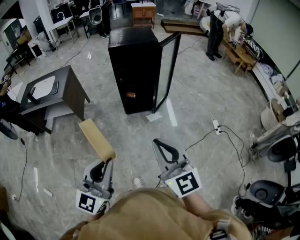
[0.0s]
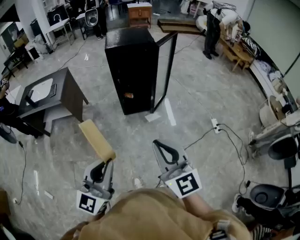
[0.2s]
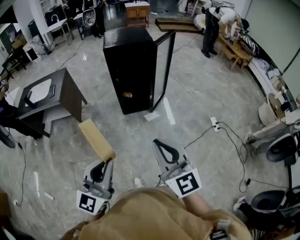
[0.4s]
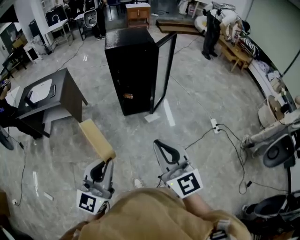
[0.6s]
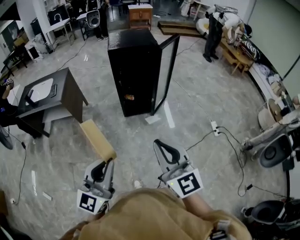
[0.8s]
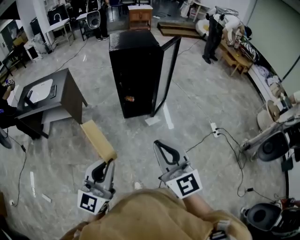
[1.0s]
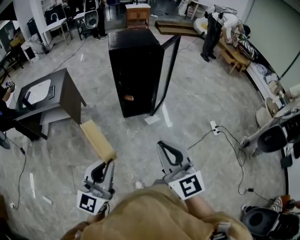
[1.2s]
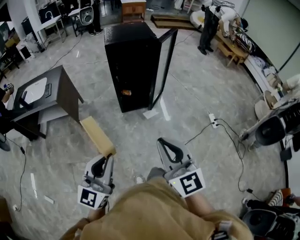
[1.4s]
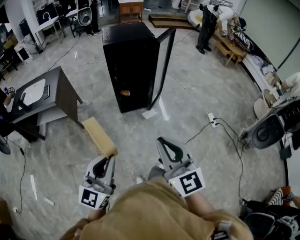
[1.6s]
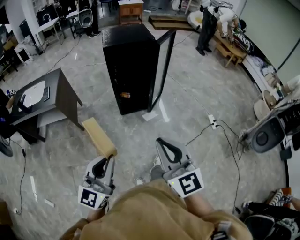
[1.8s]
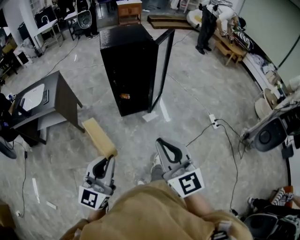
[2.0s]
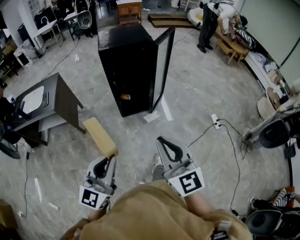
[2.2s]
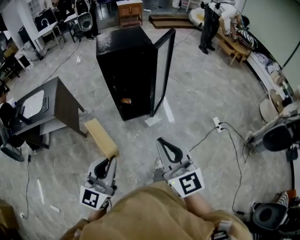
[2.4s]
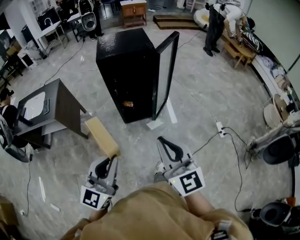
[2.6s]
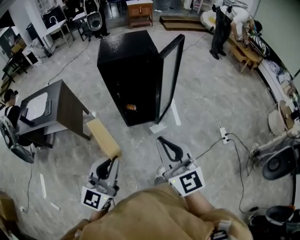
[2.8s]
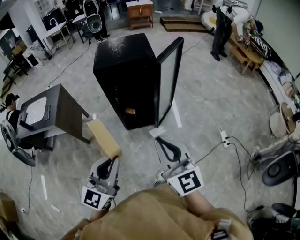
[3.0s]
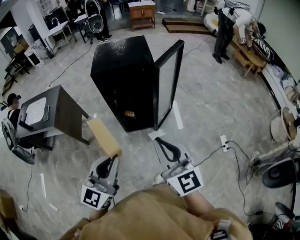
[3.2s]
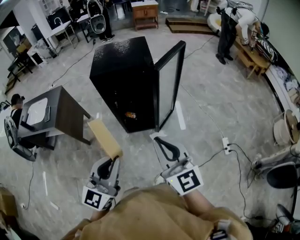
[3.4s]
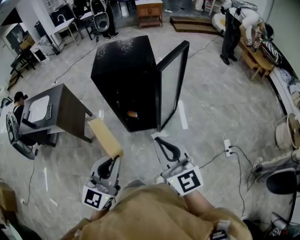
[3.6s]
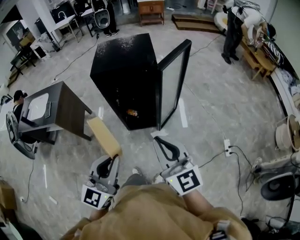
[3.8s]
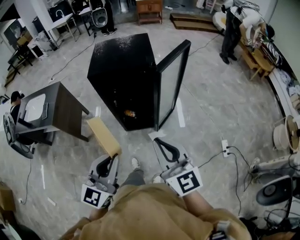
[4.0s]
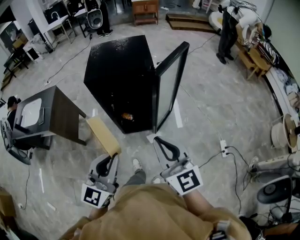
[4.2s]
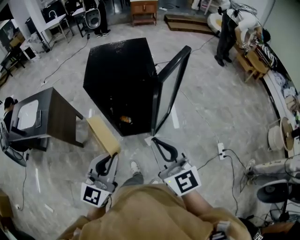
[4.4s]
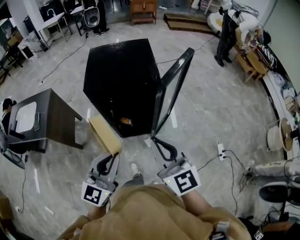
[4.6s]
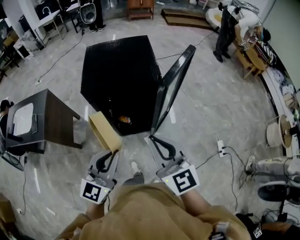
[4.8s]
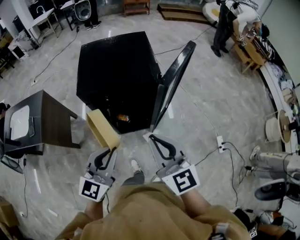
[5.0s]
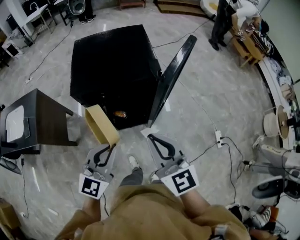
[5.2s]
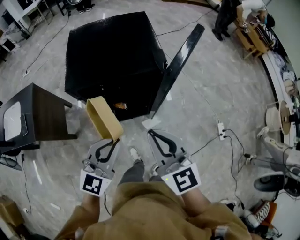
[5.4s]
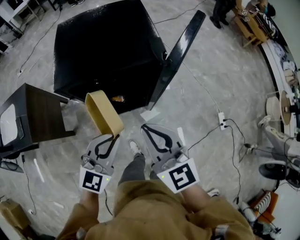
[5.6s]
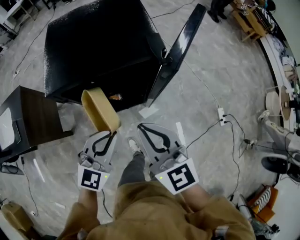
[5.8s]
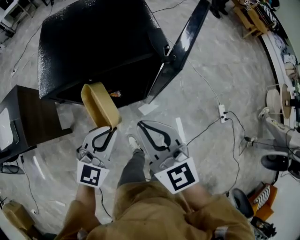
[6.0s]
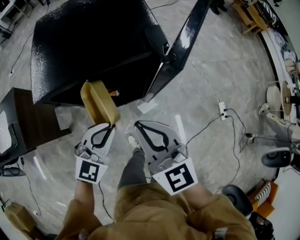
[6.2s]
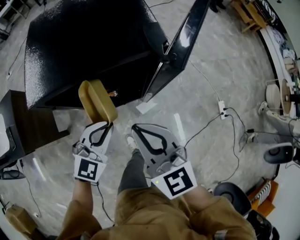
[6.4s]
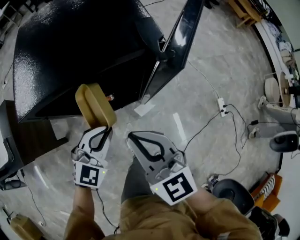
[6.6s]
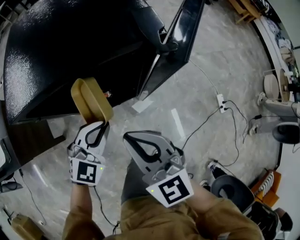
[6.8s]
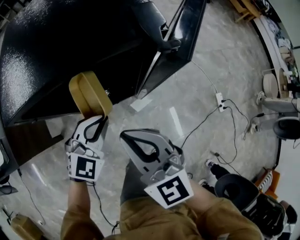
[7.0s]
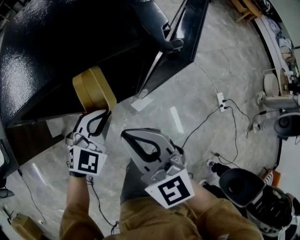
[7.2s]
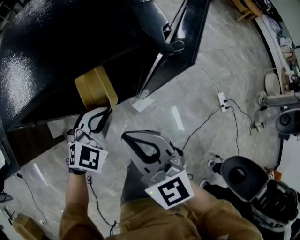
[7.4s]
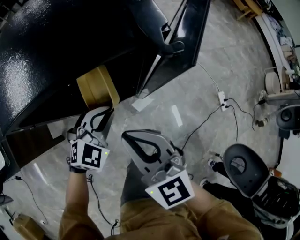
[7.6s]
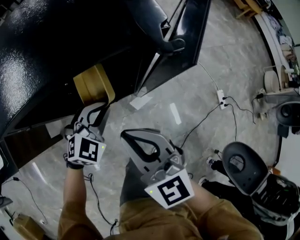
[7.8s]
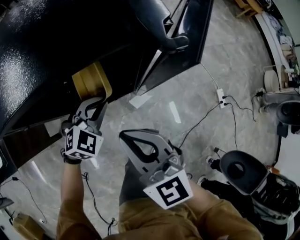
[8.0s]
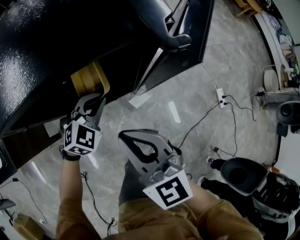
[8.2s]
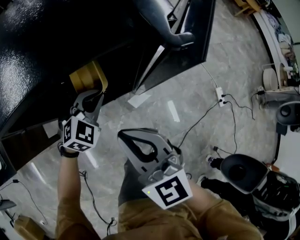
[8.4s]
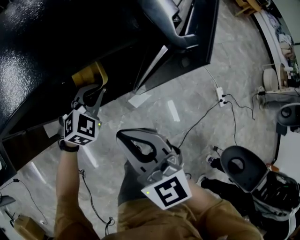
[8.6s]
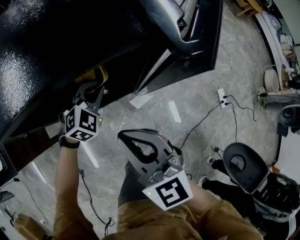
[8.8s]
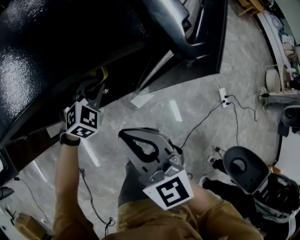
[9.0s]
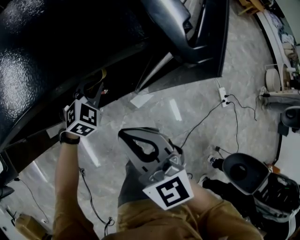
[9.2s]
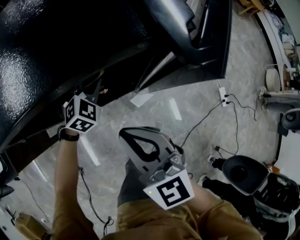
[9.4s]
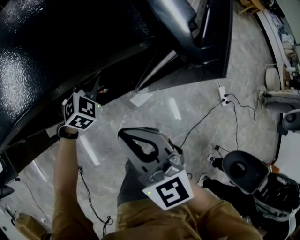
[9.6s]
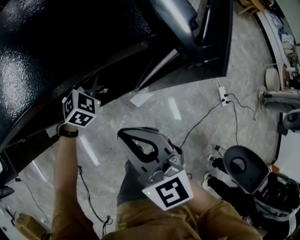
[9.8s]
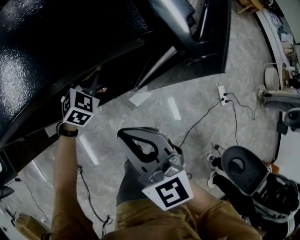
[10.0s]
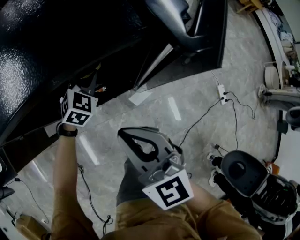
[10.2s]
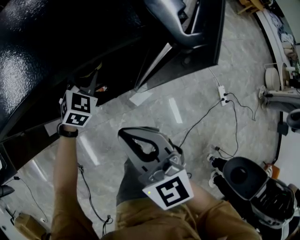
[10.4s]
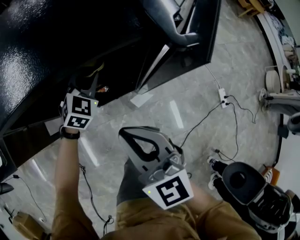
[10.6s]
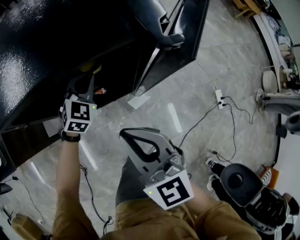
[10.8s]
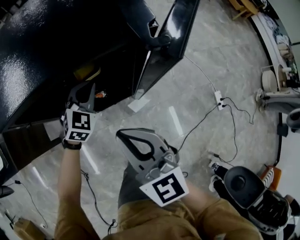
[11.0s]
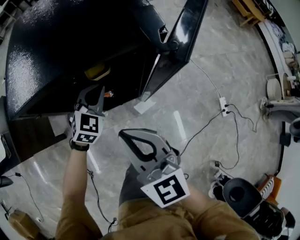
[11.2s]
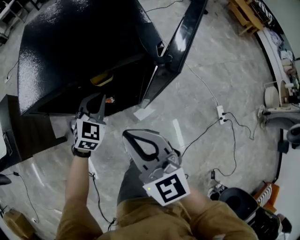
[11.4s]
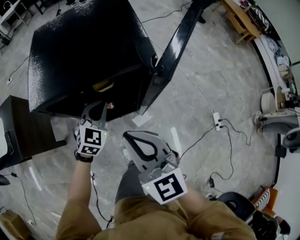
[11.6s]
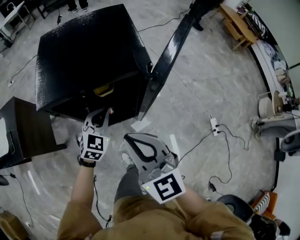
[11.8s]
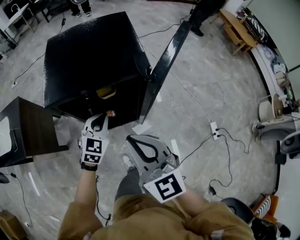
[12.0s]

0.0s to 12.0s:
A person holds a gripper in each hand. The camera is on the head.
0.0s to 1.6s: The left gripper goes about 10 cm forward and to the left, while the right gripper goes roughly 5 cm to the left.
1.6s to 3.0s: The left gripper heads forward and to the right, covering some 35 cm, while the right gripper goes about 30 cm forward.
3.0s to 4.4s: Both grippers move forward, approximately 20 cm.
4.4s to 6.0s: The left gripper goes roughly 35 cm forward and downward, and swivels some 30 degrees. Meanwhile the right gripper travels forward, downward and to the left by roughly 35 cm.
6.0s to 7.6s: The left gripper travels downward and forward by approximately 25 cm. Meanwhile the right gripper is displaced downward by roughly 15 cm.
7.6s to 9.0s: The left gripper moves forward, some 10 cm.
9.0s to 10.4s: The left gripper moves forward, roughly 5 cm.
10.4s to 12.0s: Both grippers travel together upward and backward, about 30 cm. The left gripper swivels approximately 20 degrees.

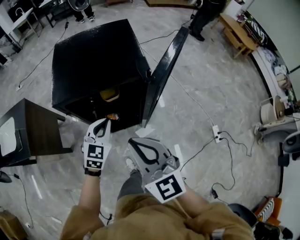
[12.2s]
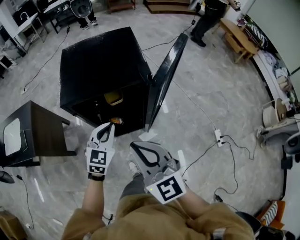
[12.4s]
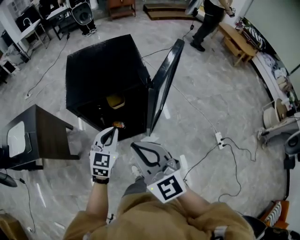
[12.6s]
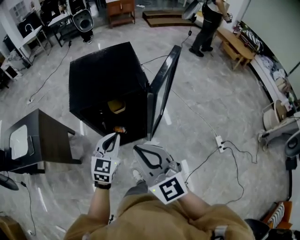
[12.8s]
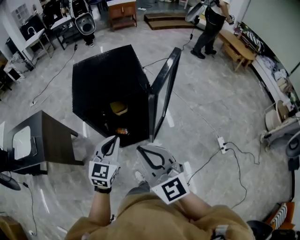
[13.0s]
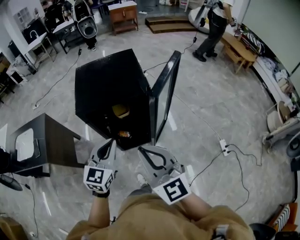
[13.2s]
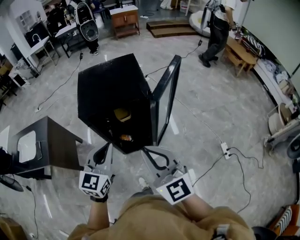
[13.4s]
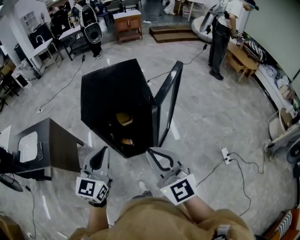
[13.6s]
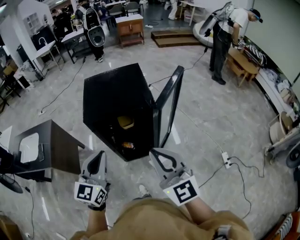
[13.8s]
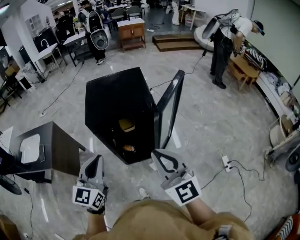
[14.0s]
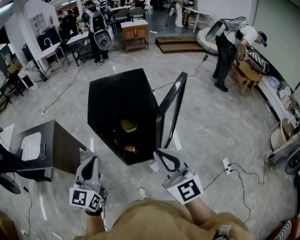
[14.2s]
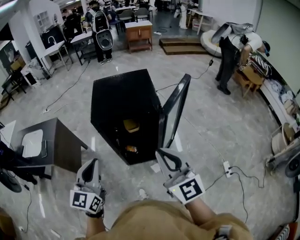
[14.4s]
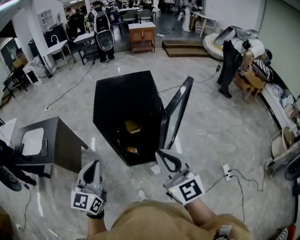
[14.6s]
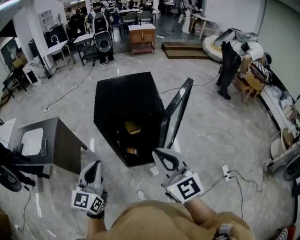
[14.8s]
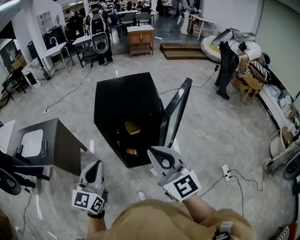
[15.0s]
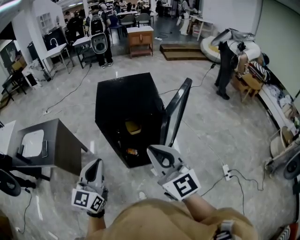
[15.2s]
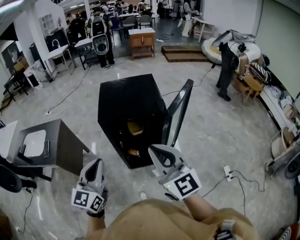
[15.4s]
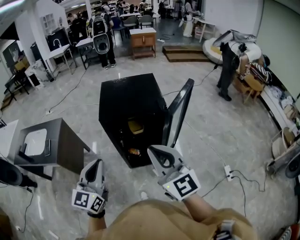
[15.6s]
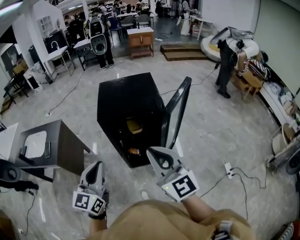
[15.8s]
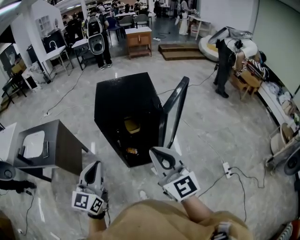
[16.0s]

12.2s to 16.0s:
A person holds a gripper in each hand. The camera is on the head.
12.2s to 13.4s: The right gripper shifts roughly 15 cm upward and backward, while the left gripper is displaced upward and backward by some 25 cm.
13.4s to 14.8s: The right gripper heads upward, covering some 5 cm. The left gripper heads to the left and backward, covering approximately 15 cm.
14.8s to 16.0s: There are only small adjustments of the grippers.

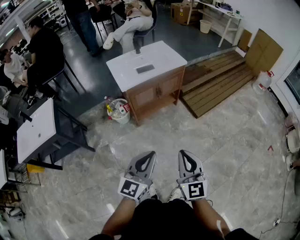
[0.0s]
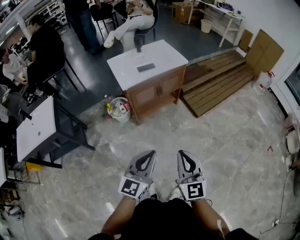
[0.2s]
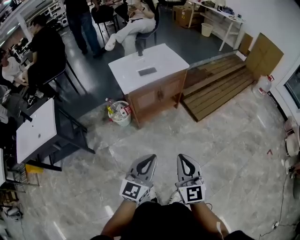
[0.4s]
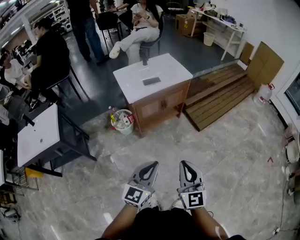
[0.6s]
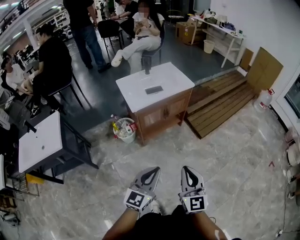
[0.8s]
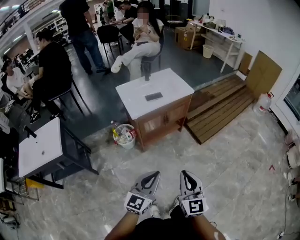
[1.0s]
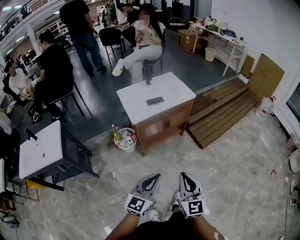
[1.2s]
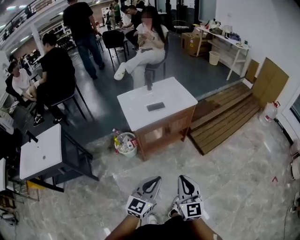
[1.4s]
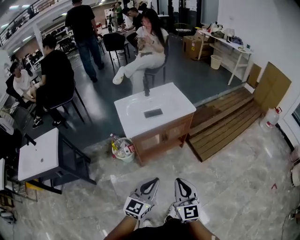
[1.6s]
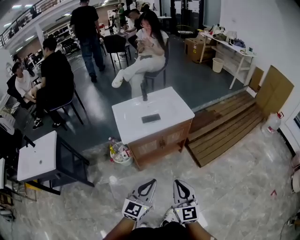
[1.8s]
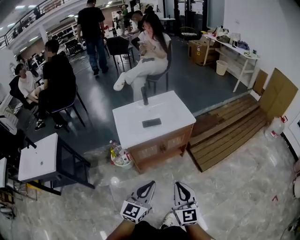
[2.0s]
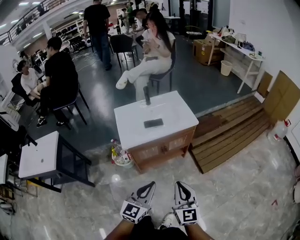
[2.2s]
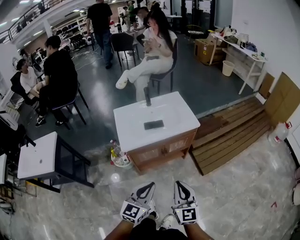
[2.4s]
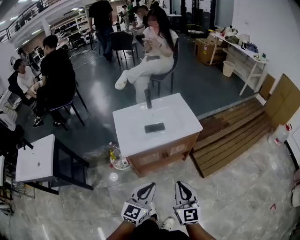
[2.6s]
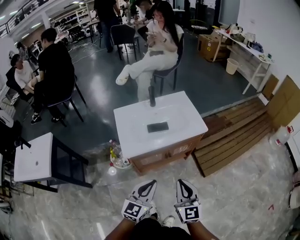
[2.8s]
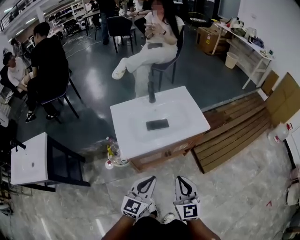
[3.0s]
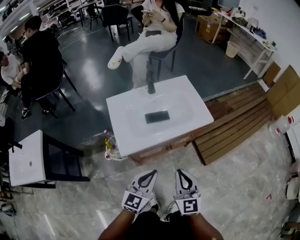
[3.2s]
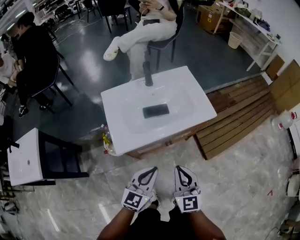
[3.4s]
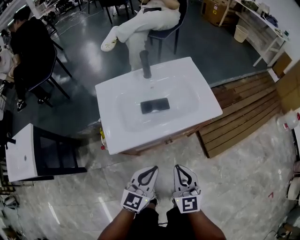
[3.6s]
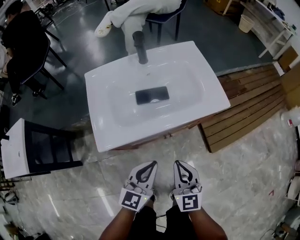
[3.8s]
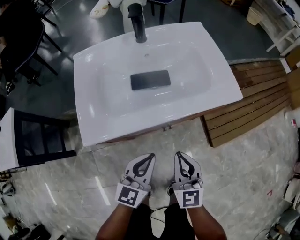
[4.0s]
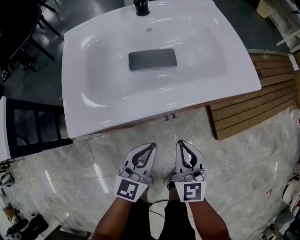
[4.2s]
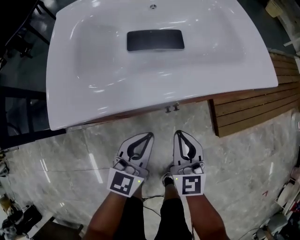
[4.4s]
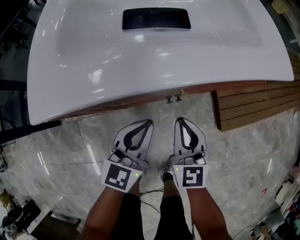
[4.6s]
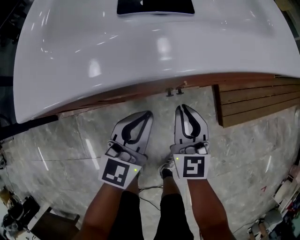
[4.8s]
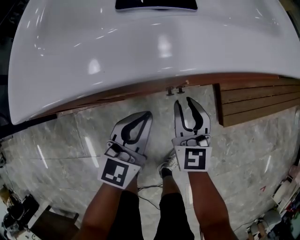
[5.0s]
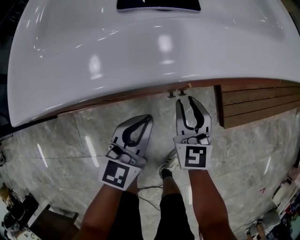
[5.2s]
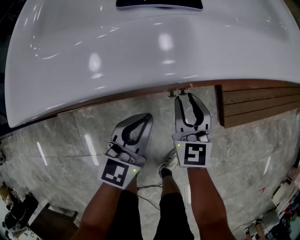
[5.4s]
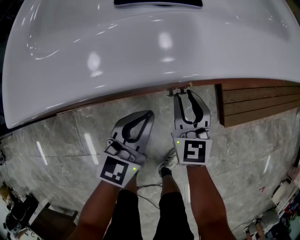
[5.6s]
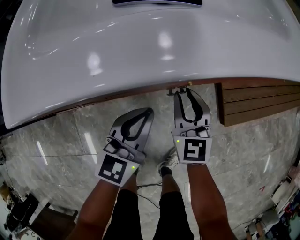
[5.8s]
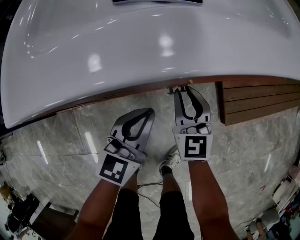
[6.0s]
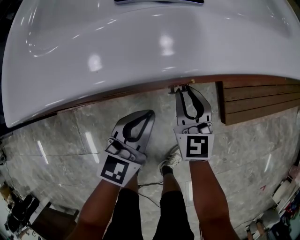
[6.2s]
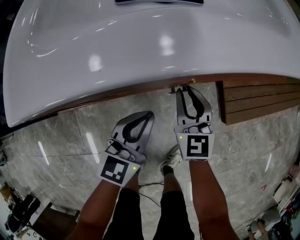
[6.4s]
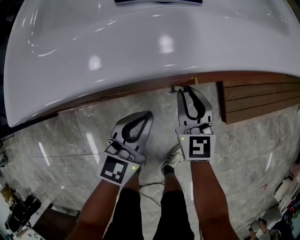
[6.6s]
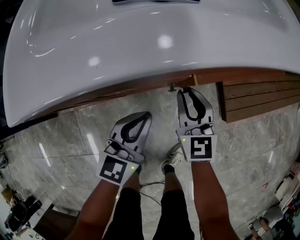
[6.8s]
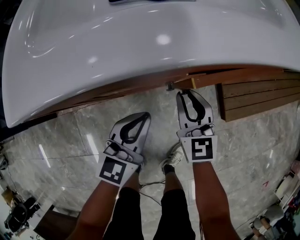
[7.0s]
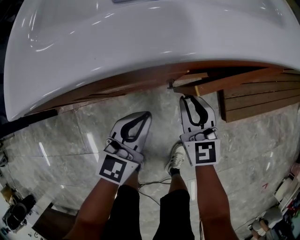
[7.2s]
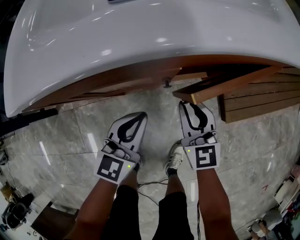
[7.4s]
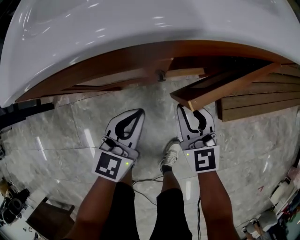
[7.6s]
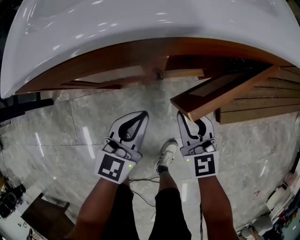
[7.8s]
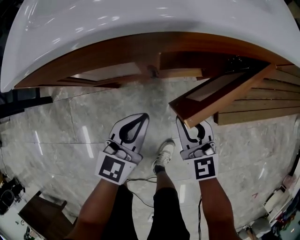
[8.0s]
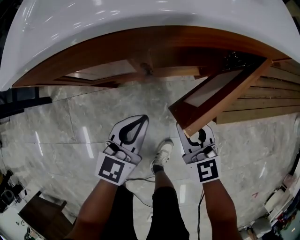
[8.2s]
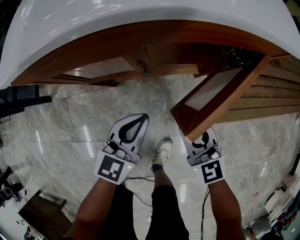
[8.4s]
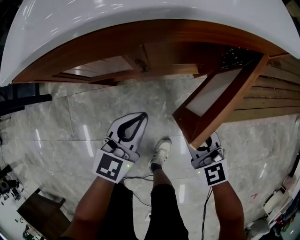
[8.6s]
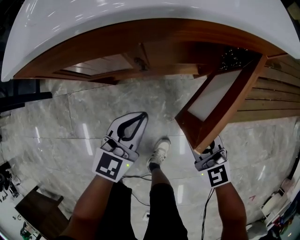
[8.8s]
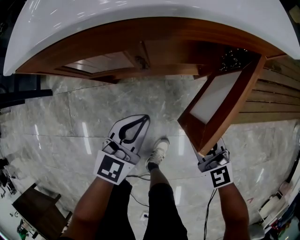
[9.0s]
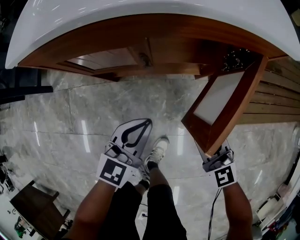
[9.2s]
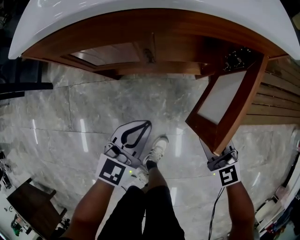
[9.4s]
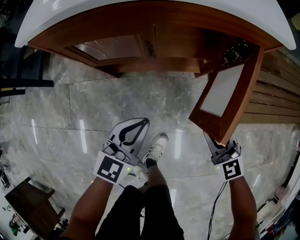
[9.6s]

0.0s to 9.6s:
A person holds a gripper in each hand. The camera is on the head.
0.0s to 1.6s: The two grippers go about 15 cm forward.
1.6s to 3.2s: Both grippers move forward, approximately 25 cm.
3.2s to 4.8s: The grippers both shift downward and forward by roughly 35 cm.
4.8s to 6.4s: The right gripper moves about 5 cm.
6.4s to 8.0s: The left gripper shifts some 5 cm to the right. The right gripper travels backward and to the right by roughly 10 cm.
8.0s to 9.6s: The right gripper travels to the right and backward by roughly 15 cm, and rotates about 20 degrees, while the left gripper heads backward, covering some 10 cm.
